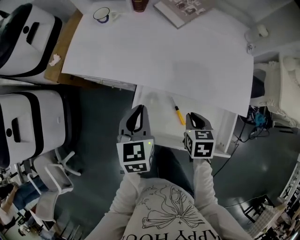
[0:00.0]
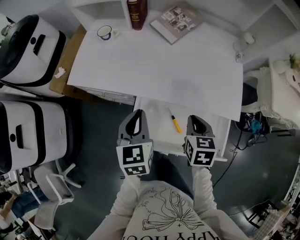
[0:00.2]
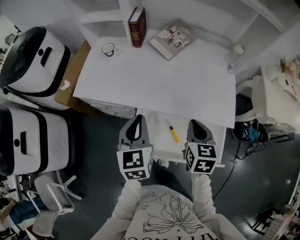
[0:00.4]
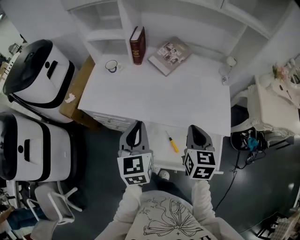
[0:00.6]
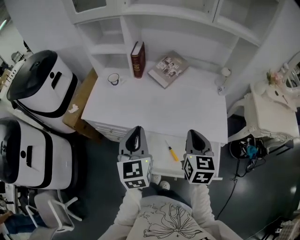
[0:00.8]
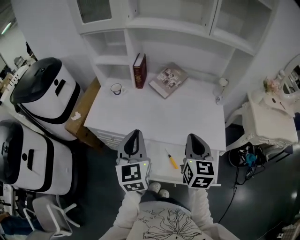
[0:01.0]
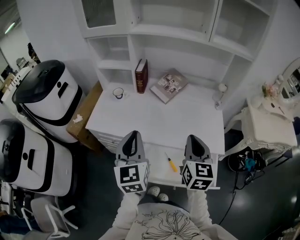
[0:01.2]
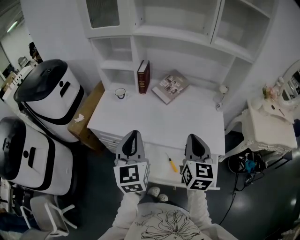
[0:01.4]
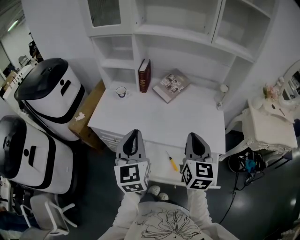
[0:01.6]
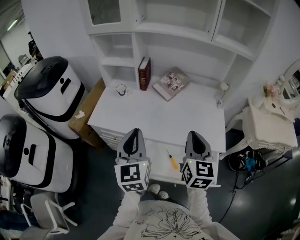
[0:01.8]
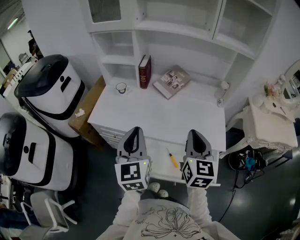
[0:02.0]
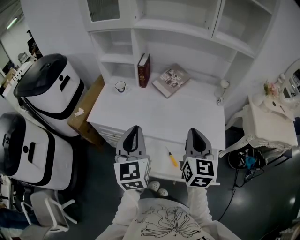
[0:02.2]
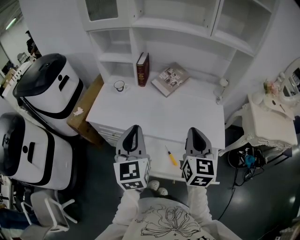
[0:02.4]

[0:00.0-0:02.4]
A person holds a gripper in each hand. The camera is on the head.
0:00.0 to 0:01.2: Both grippers travel together upward, some 30 cm. The right gripper tilts its fingers roughly 40 degrees upward. Meanwhile the left gripper turns by approximately 30 degrees.
0:01.2 to 0:02.4: The grippers make only small movements.

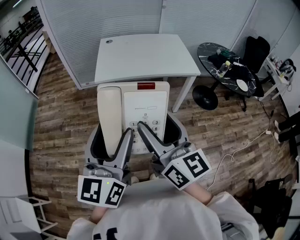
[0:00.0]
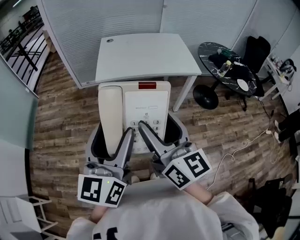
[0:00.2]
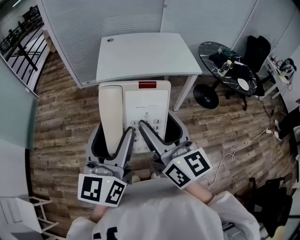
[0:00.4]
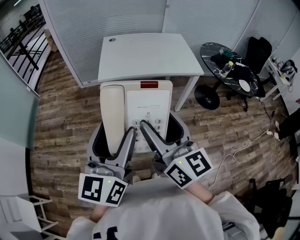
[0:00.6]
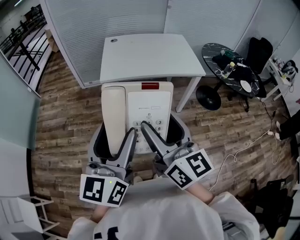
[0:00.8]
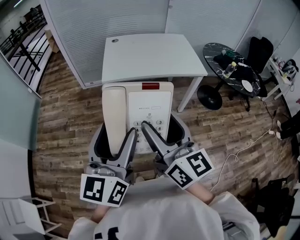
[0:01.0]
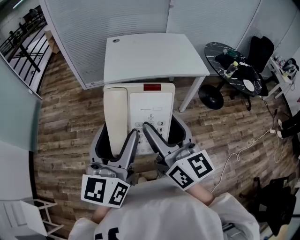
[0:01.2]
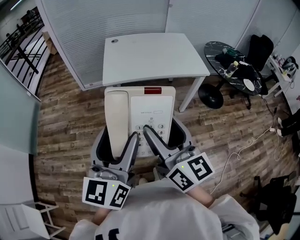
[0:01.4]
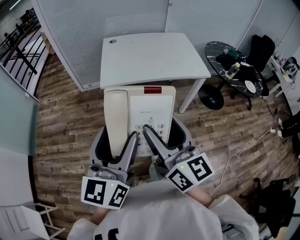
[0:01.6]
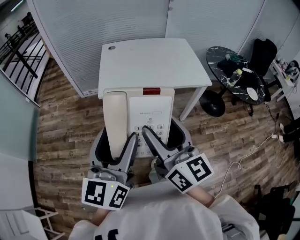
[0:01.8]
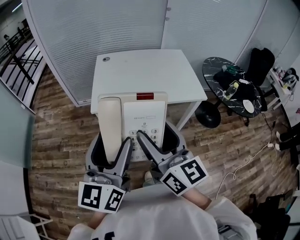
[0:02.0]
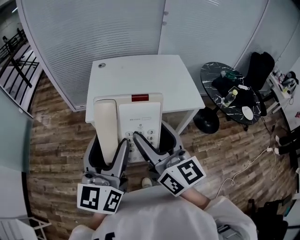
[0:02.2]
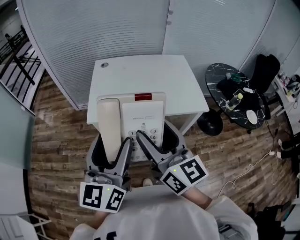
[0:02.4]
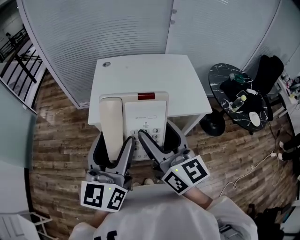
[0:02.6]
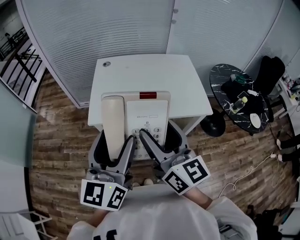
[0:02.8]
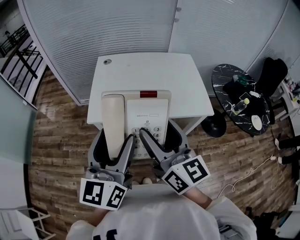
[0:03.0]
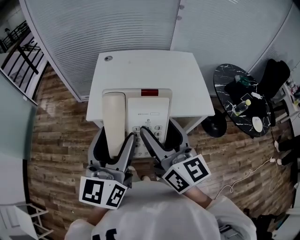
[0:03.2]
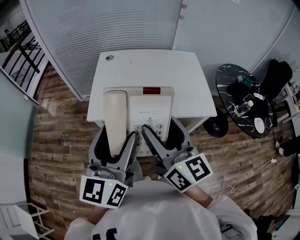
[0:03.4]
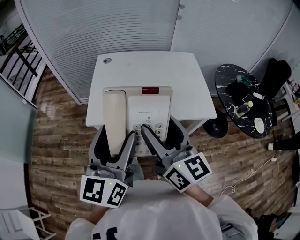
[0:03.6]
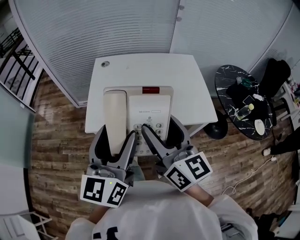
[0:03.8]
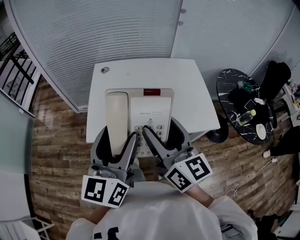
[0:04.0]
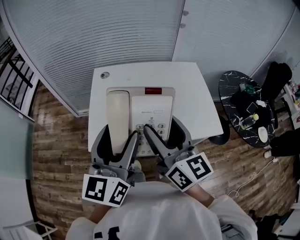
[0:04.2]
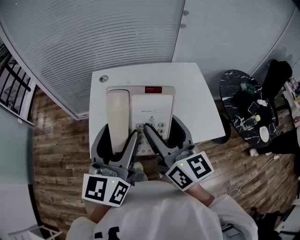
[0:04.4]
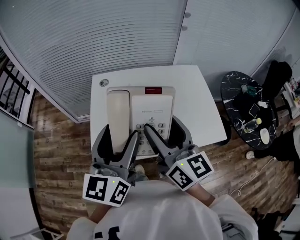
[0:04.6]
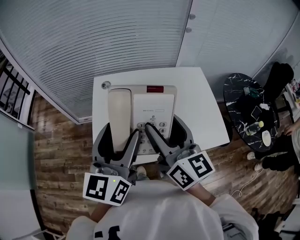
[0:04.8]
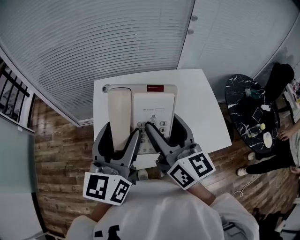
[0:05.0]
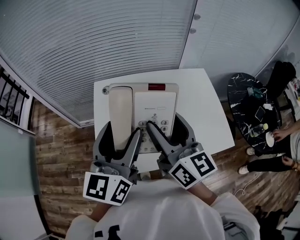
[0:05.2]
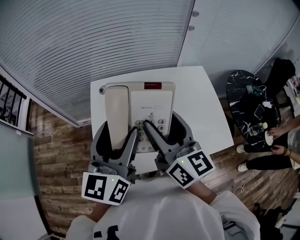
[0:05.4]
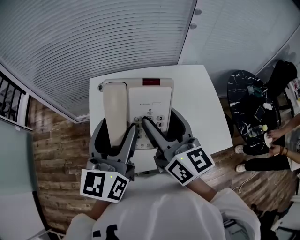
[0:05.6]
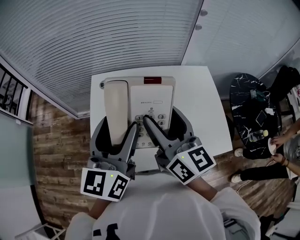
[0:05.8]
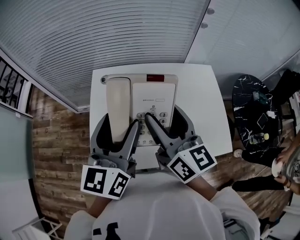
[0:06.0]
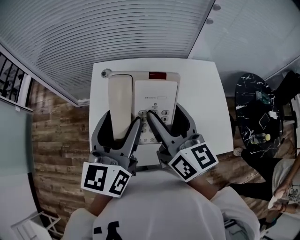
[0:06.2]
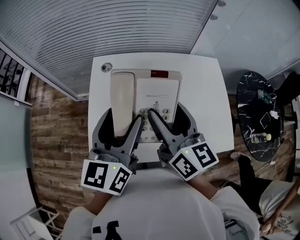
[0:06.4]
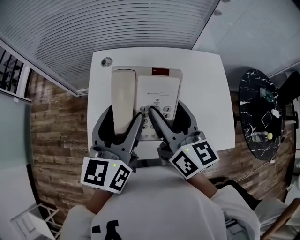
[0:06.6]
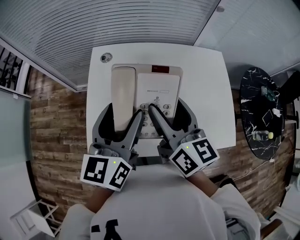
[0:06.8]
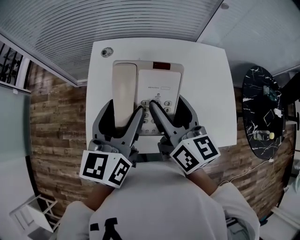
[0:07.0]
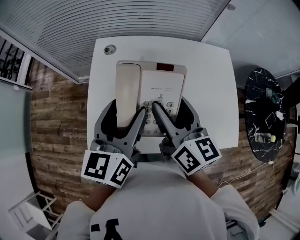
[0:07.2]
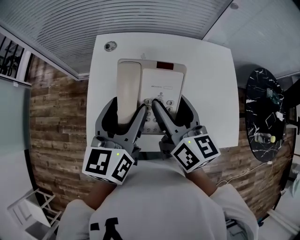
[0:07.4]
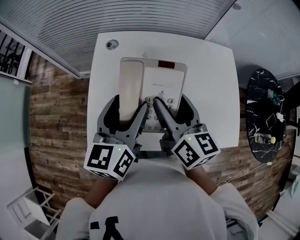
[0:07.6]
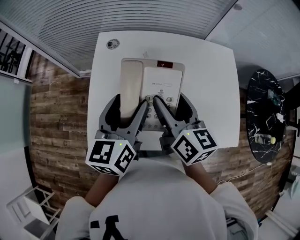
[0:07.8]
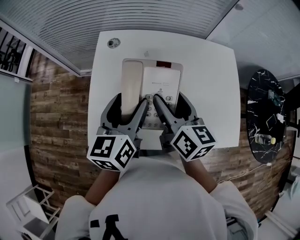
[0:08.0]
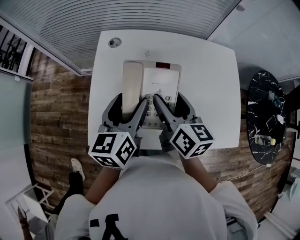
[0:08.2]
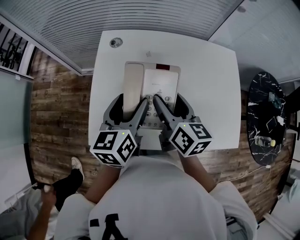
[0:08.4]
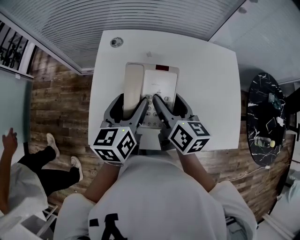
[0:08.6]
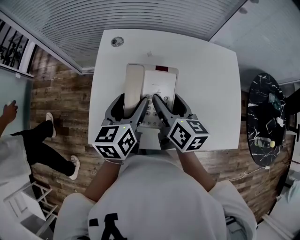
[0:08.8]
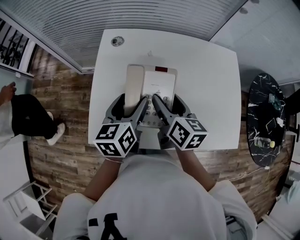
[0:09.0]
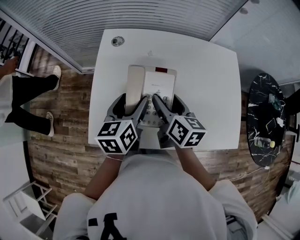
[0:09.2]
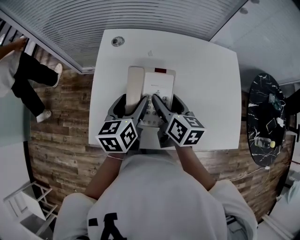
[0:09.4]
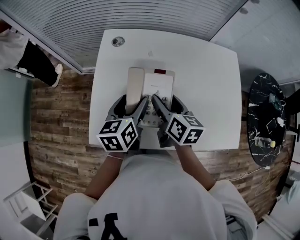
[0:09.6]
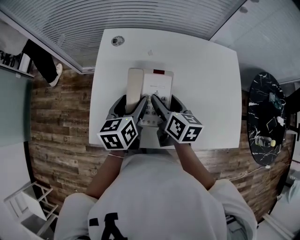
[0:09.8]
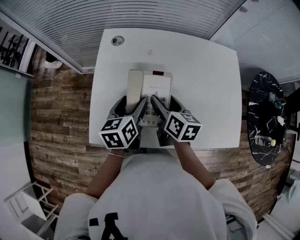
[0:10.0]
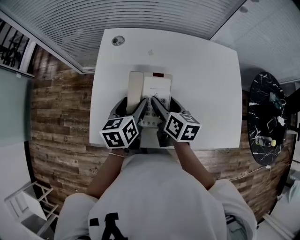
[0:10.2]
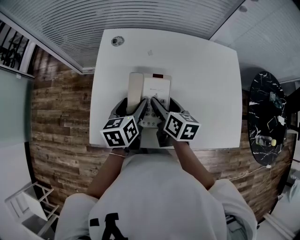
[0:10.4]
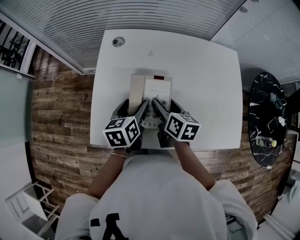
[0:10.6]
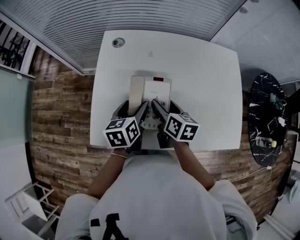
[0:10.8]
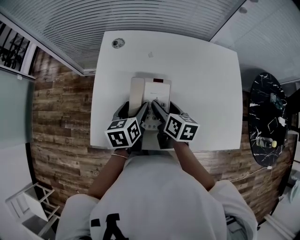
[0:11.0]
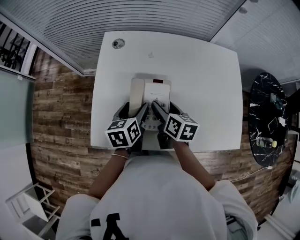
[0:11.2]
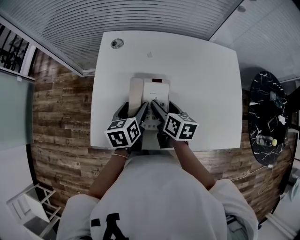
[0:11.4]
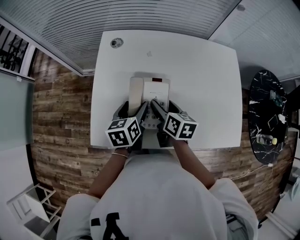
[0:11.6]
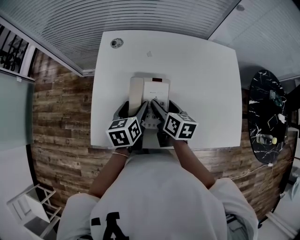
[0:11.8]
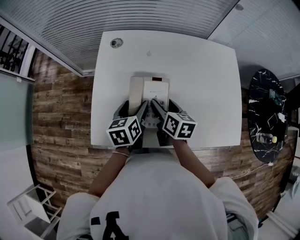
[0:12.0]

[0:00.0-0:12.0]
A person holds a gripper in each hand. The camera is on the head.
0:00.0 to 0:01.6: The two grippers go some 5 cm forward.
0:01.6 to 0:03.0: Both grippers travel together forward and to the right, roughly 25 cm.
0:03.0 to 0:04.4: The two grippers go about 20 cm forward.
0:04.4 to 0:06.0: Both grippers travel together forward, some 15 cm.
0:06.0 to 0:07.6: Both grippers move downward, roughly 10 cm.
0:07.6 to 0:09.0: Both grippers travel together downward, about 10 cm.
0:09.0 to 0:10.4: Both grippers move downward, roughly 5 cm.
0:10.4 to 0:12.0: The grippers move only a little.

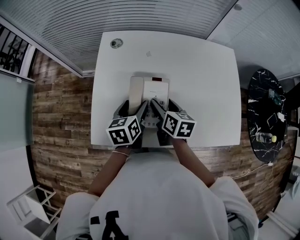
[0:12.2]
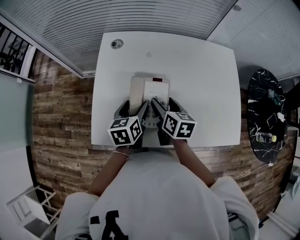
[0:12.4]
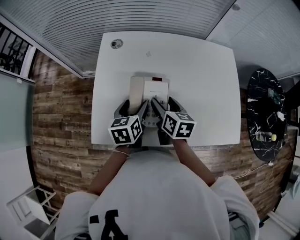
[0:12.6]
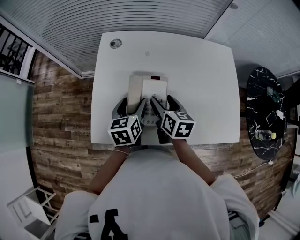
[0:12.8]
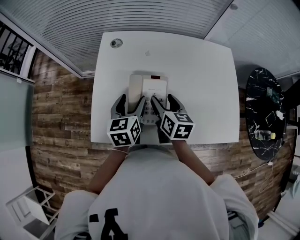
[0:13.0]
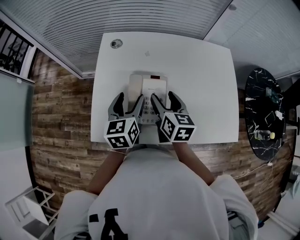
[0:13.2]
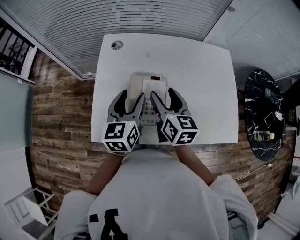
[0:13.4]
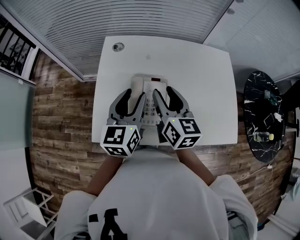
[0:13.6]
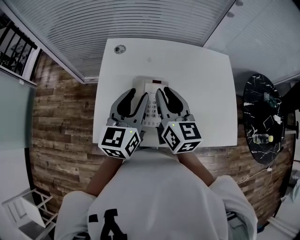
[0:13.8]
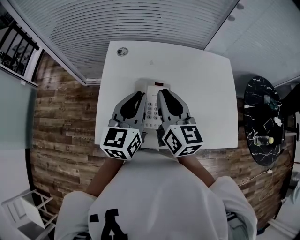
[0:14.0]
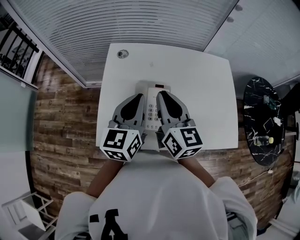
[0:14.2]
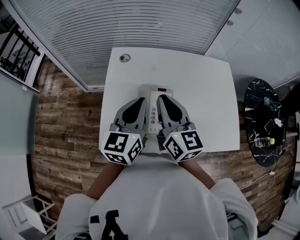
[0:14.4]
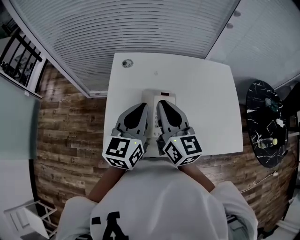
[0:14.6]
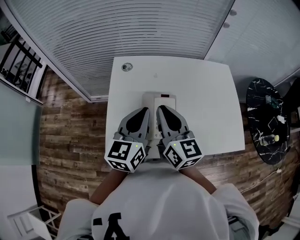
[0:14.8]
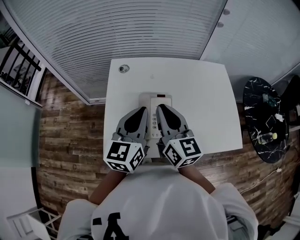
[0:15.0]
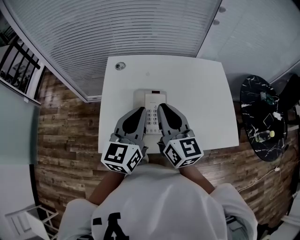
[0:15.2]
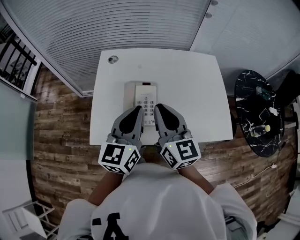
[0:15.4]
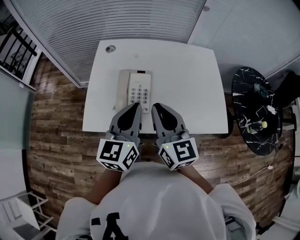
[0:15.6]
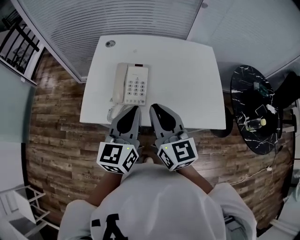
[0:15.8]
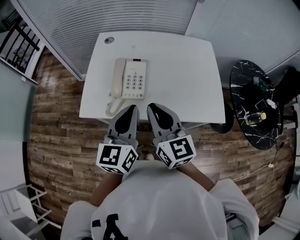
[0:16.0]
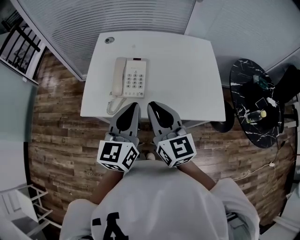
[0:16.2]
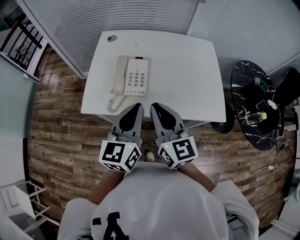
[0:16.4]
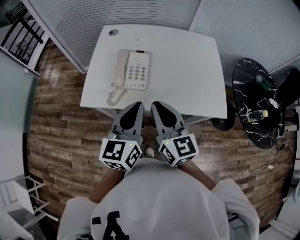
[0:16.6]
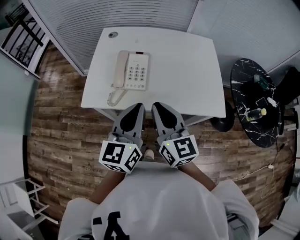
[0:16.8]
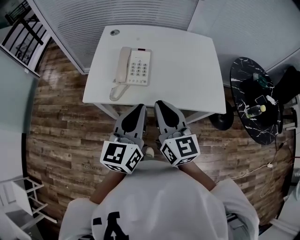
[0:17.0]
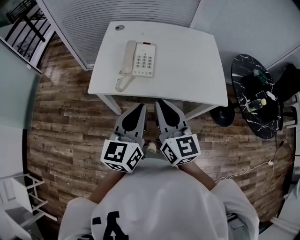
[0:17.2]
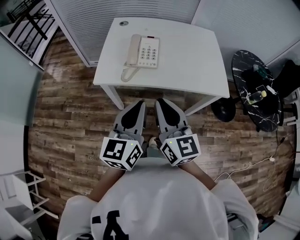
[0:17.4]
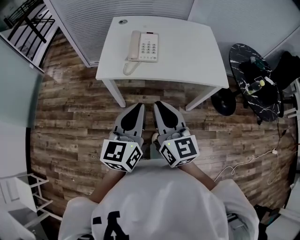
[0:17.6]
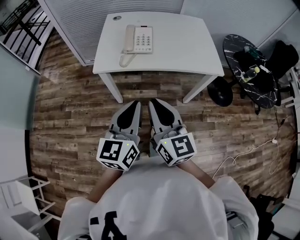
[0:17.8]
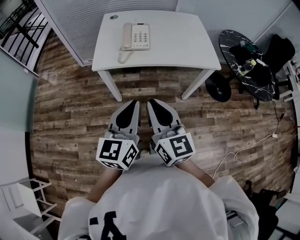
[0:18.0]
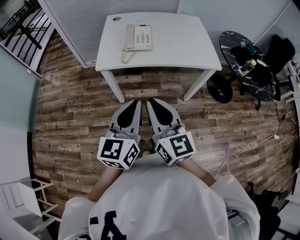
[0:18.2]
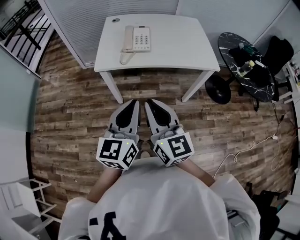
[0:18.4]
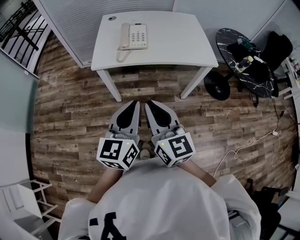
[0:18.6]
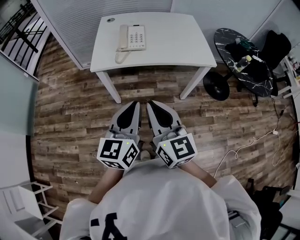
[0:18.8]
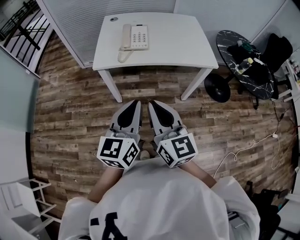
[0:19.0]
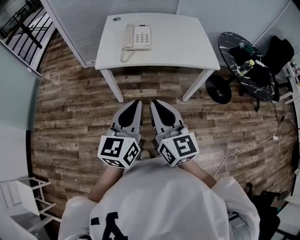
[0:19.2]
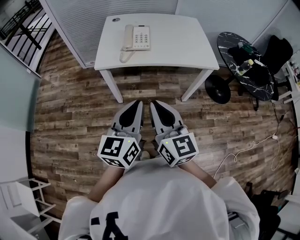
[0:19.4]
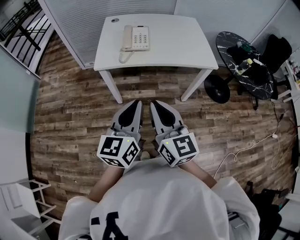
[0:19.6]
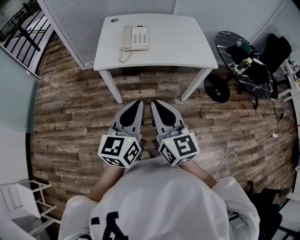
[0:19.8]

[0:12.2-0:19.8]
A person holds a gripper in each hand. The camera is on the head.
0:12.2 to 0:13.8: The two grippers go about 15 cm upward. The left gripper changes its angle by approximately 30 degrees, and closes its fingers, while the right gripper swivels some 30 degrees, and closes.
0:13.8 to 0:15.2: The left gripper changes place by approximately 5 cm, and closes its fingers, while the right gripper goes about 5 cm backward.
0:15.2 to 0:16.8: The left gripper goes about 20 cm backward and to the right. The right gripper travels backward by about 20 cm.
0:16.8 to 0:18.2: The grippers both shift backward by about 25 cm.
0:18.2 to 0:19.8: The grippers stay close to where they were, moving slightly.

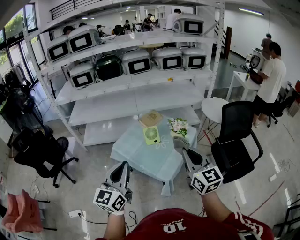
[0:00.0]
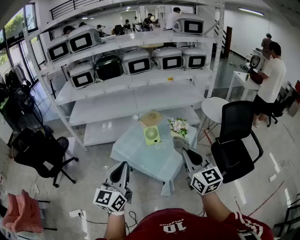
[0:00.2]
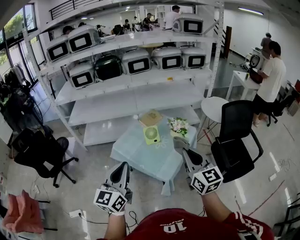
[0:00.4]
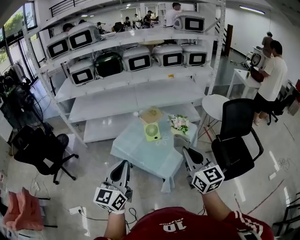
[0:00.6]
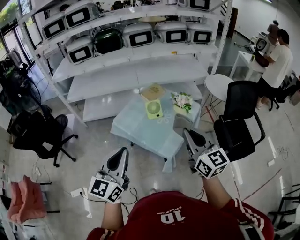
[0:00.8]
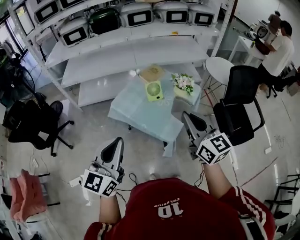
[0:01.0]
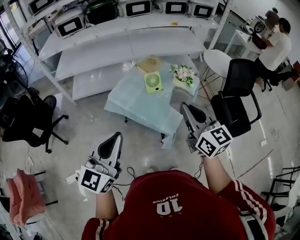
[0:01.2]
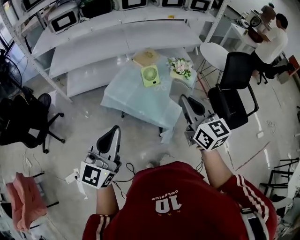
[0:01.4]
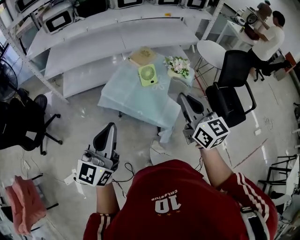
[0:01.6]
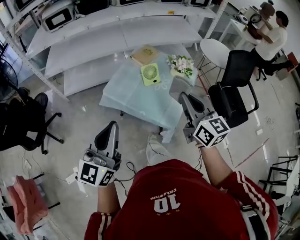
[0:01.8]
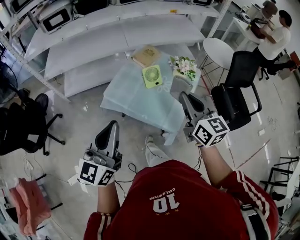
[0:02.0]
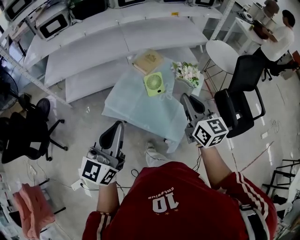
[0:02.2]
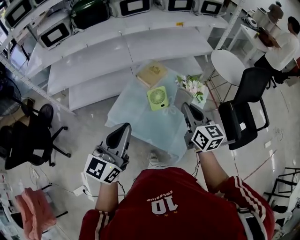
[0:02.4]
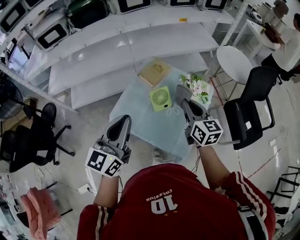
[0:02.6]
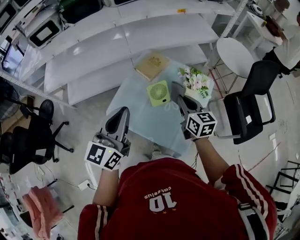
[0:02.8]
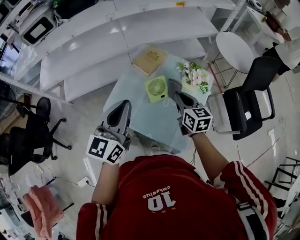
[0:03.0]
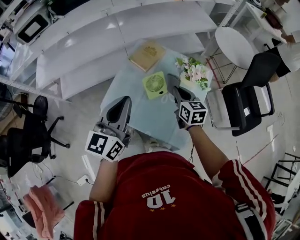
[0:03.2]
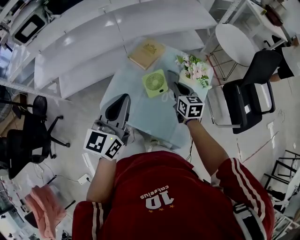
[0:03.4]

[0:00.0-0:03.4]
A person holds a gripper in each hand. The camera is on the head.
0:00.0 to 0:01.6: Both grippers travel together to the left, approximately 10 cm.
0:01.6 to 0:03.4: The right gripper heads forward and downward, covering about 50 cm, and rotates about 30 degrees. Meanwhile the left gripper moves forward, roughly 35 cm.
